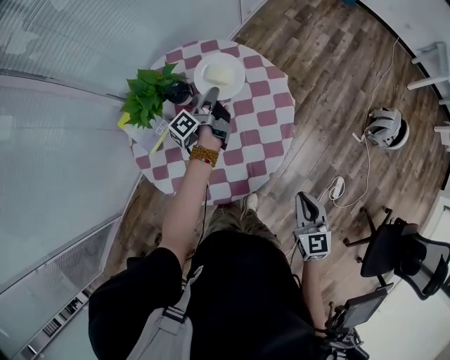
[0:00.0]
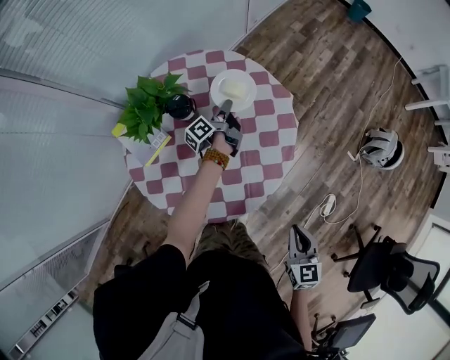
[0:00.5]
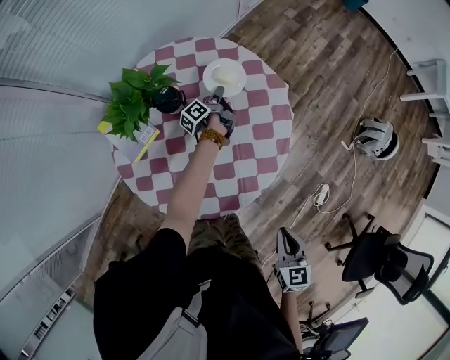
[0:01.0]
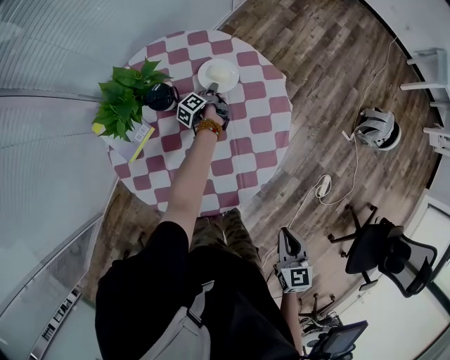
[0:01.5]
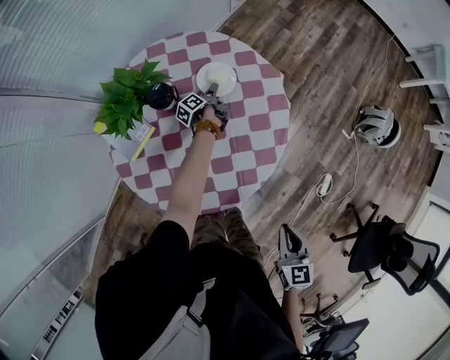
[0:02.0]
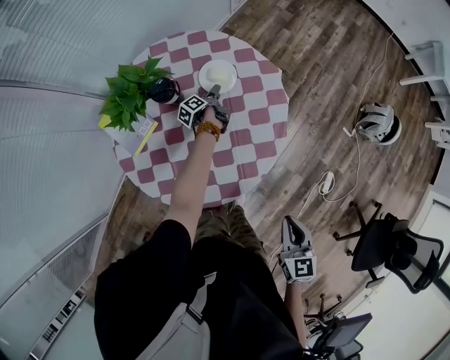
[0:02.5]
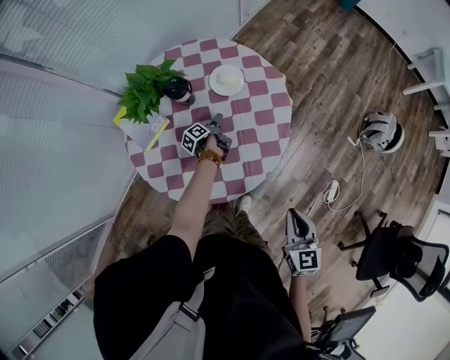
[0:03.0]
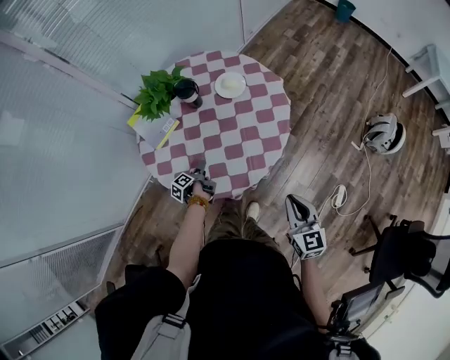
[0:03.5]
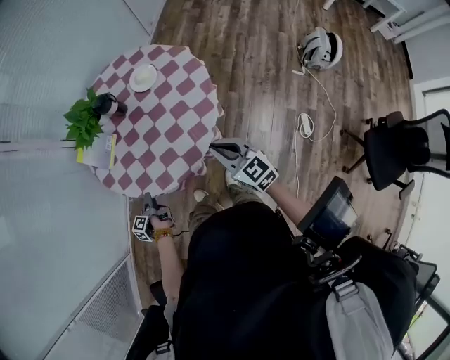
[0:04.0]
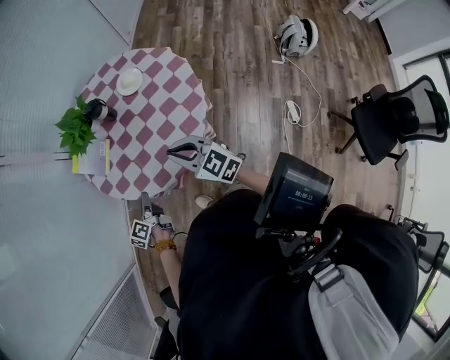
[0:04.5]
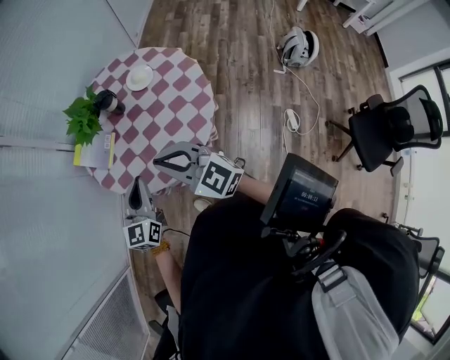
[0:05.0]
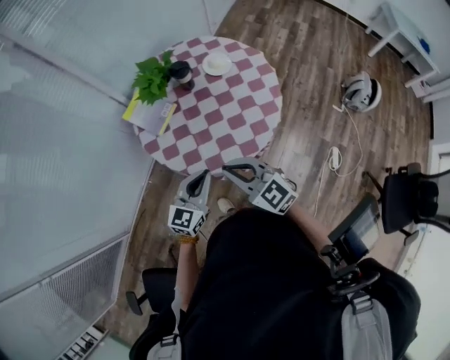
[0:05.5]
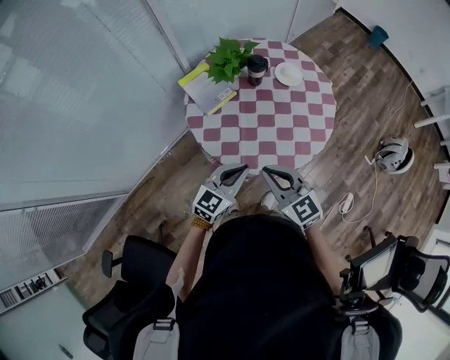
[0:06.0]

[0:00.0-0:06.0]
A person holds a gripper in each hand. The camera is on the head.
0:00.0 to 0:02.0: The right gripper shifts by about 5 cm.
0:02.0 to 0:04.0: The right gripper moves approximately 5 cm, and rotates approximately 30 degrees.
0:04.0 to 0:06.0: The right gripper ends up some 25 cm from where it was, and rotates roughly 20 degrees.

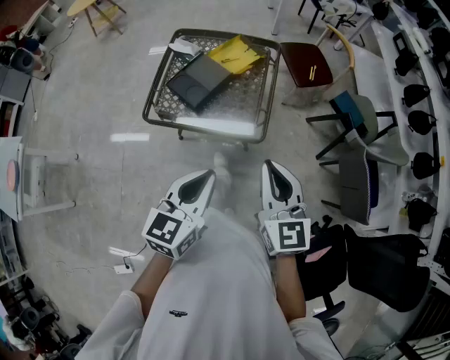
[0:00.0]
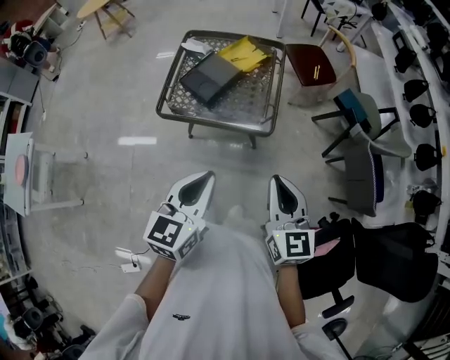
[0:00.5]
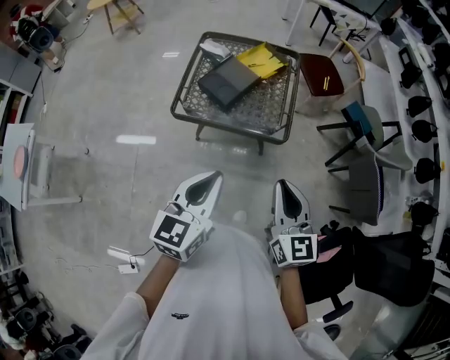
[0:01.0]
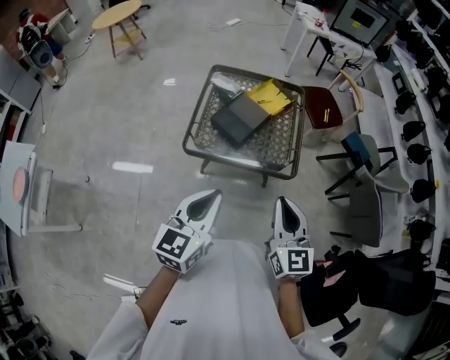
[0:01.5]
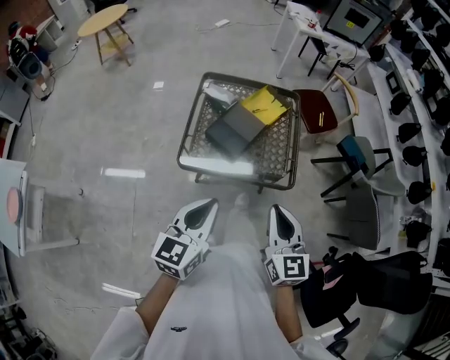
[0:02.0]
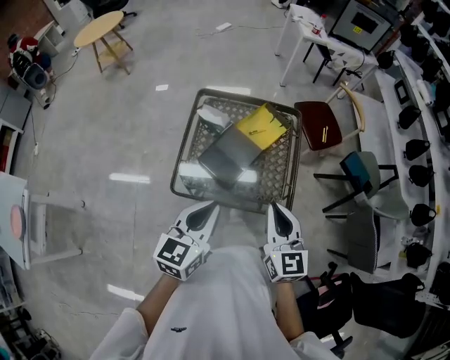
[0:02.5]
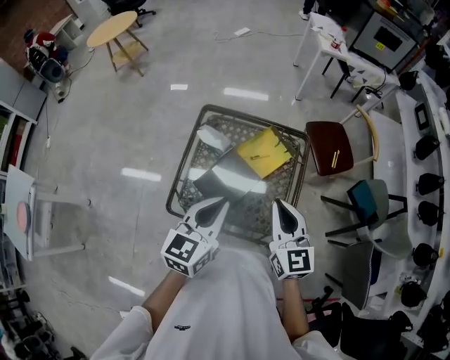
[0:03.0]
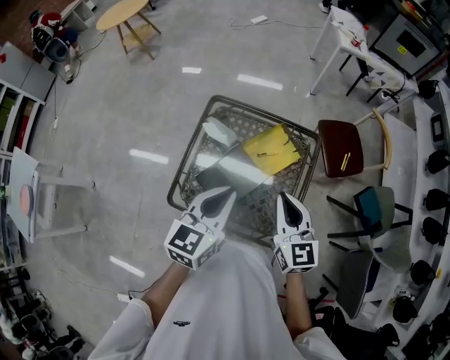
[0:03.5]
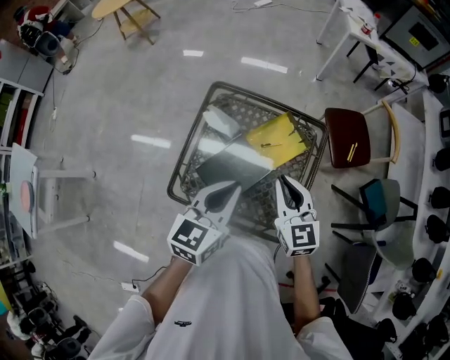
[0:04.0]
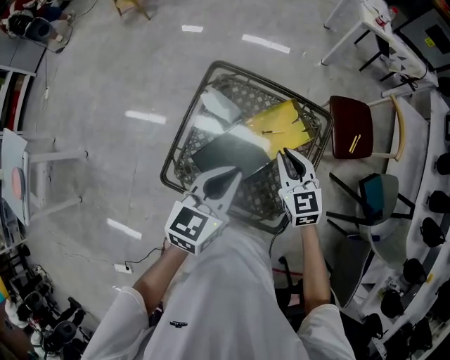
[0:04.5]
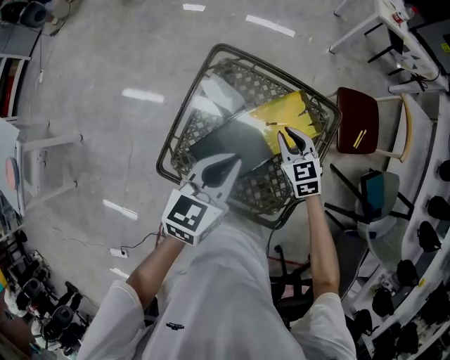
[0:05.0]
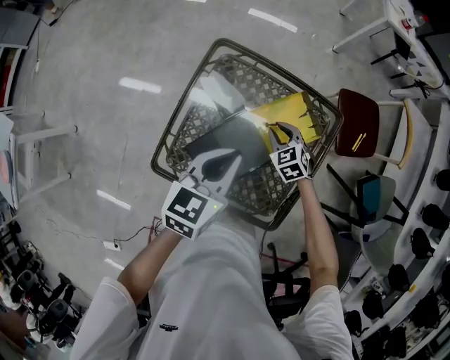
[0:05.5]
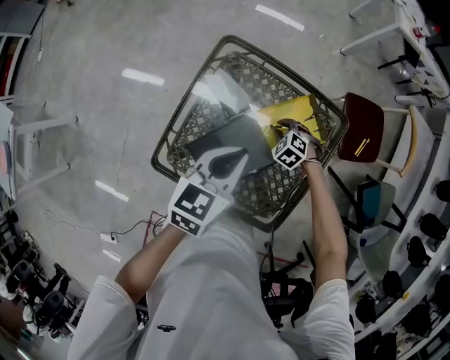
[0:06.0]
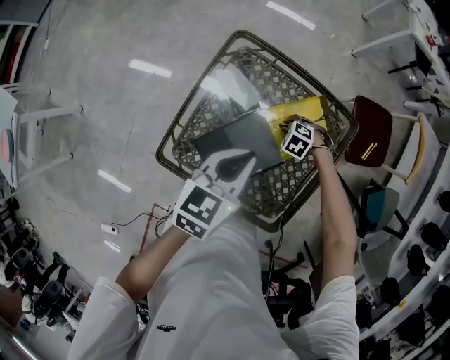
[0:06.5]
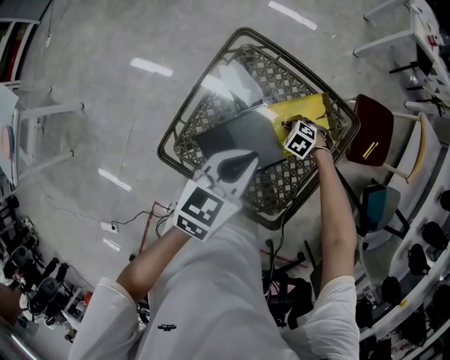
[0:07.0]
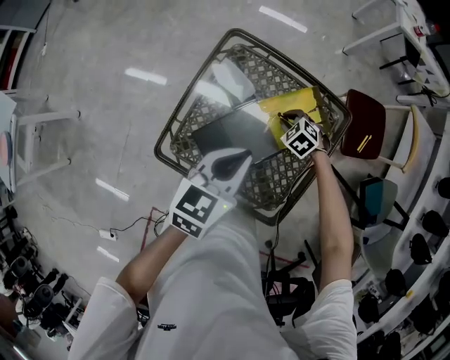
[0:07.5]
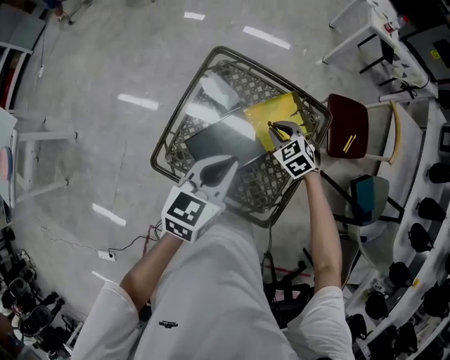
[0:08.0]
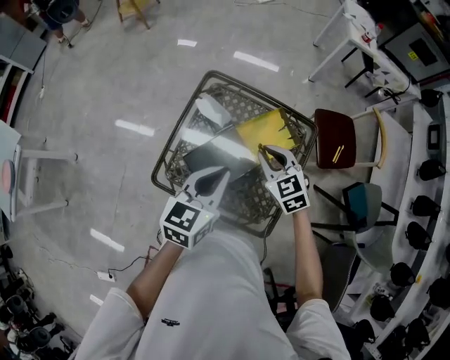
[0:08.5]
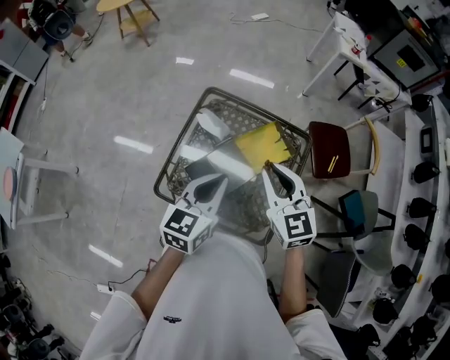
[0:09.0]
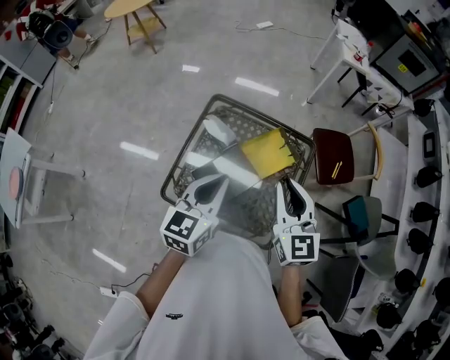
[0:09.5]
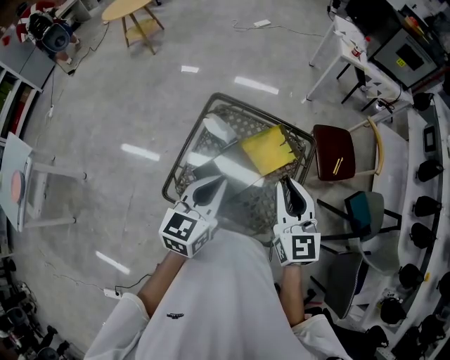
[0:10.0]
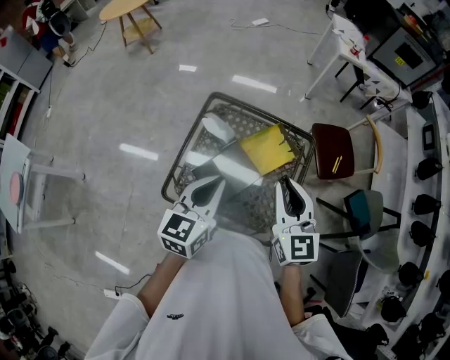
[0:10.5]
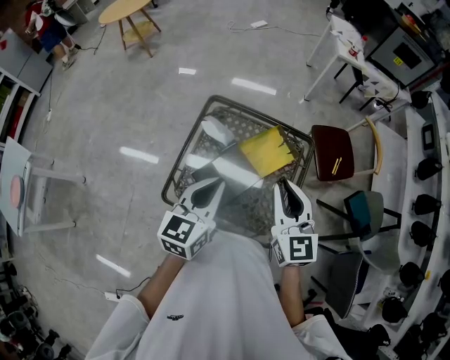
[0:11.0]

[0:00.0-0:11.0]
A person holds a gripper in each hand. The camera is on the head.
0:00.0 to 0:02.0: Both grippers travel together to the left, roughly 20 cm.
0:02.0 to 0:03.5: The grippers both shift forward by some 35 cm.
0:03.5 to 0:05.5: The right gripper is displaced downward and forward by some 35 cm, and points its fingers roughly 40 degrees further downward; the left gripper travels downward and forward by roughly 15 cm.
0:05.5 to 0:07.5: The right gripper is displaced downward by some 5 cm, and turns by about 30 degrees.
0:07.5 to 0:09.0: The right gripper is displaced upward by about 40 cm, and angles its fingers upward, by approximately 50 degrees. Meanwhile the left gripper heads upward and backward, covering approximately 10 cm.
0:09.0 to 0:11.0: The right gripper ends up approximately 5 cm from where it was.

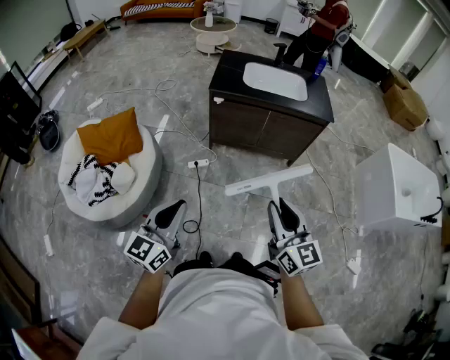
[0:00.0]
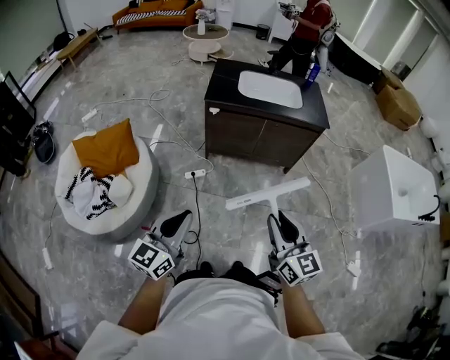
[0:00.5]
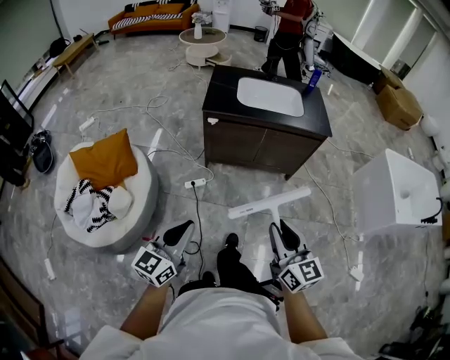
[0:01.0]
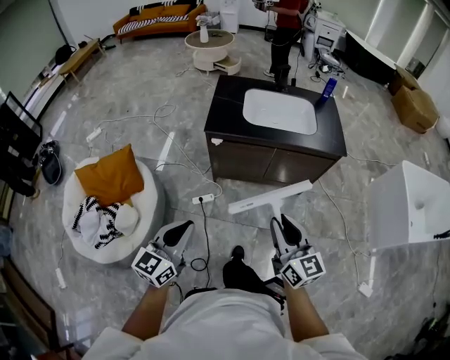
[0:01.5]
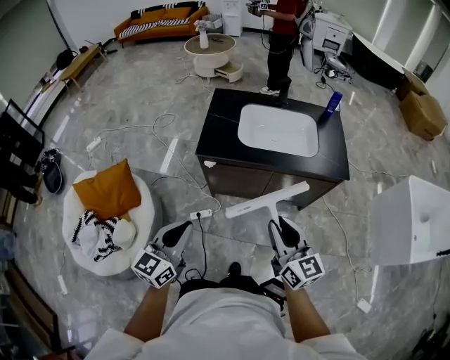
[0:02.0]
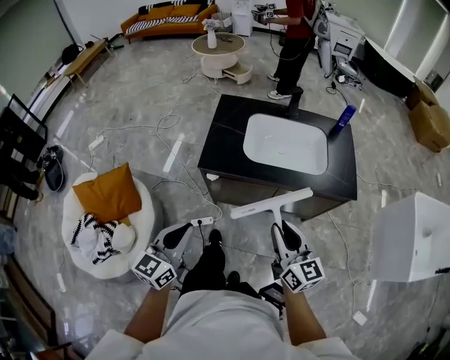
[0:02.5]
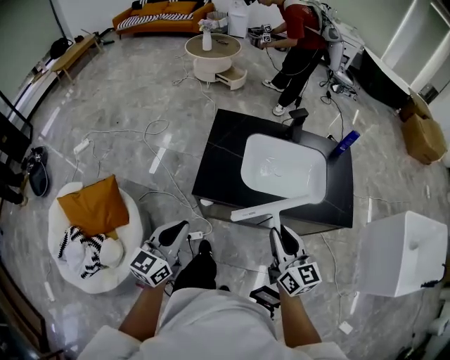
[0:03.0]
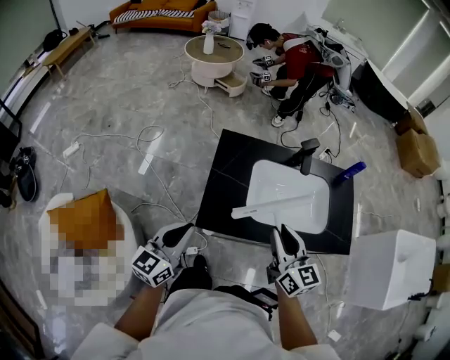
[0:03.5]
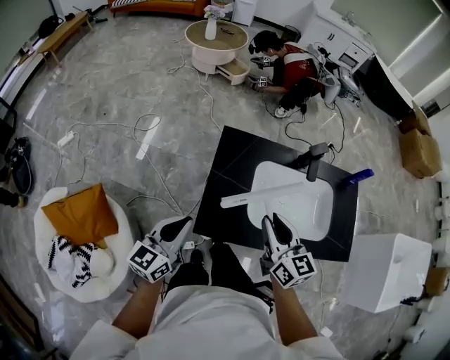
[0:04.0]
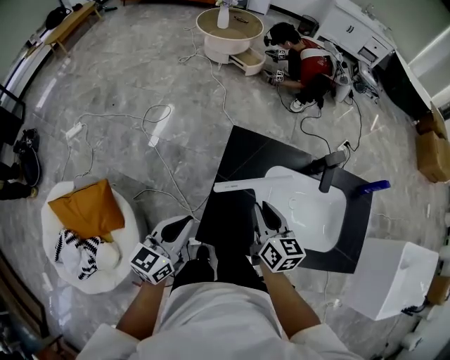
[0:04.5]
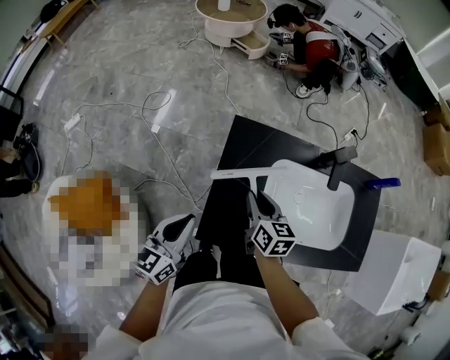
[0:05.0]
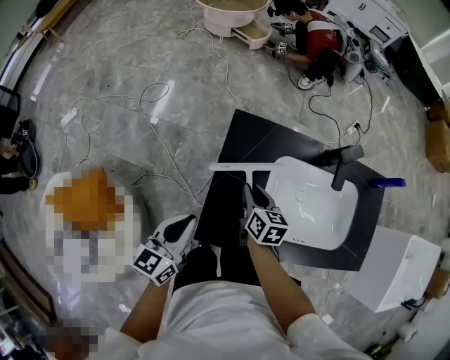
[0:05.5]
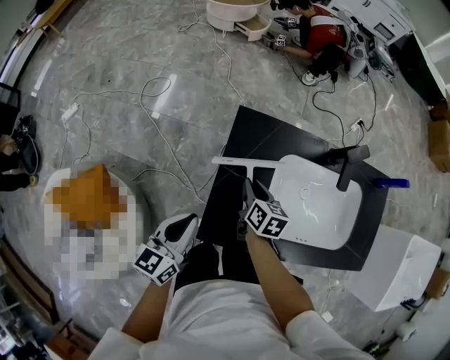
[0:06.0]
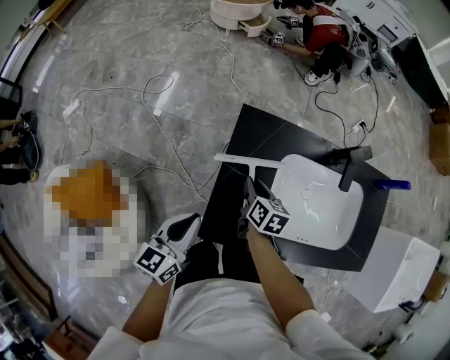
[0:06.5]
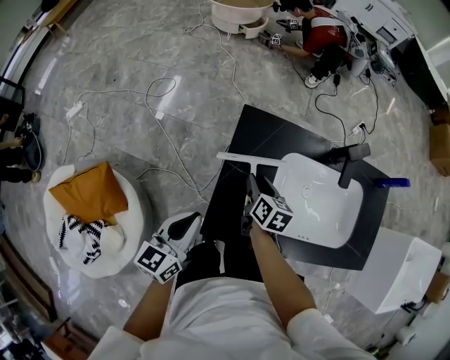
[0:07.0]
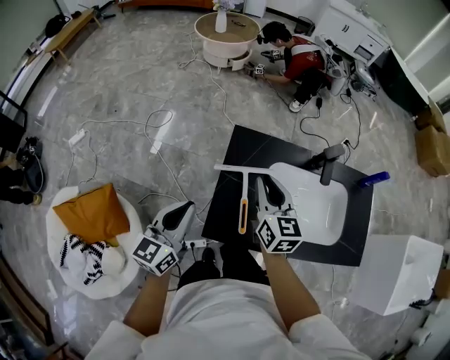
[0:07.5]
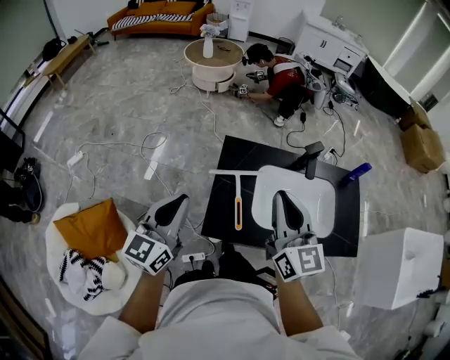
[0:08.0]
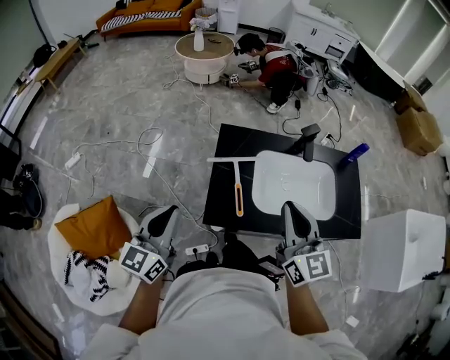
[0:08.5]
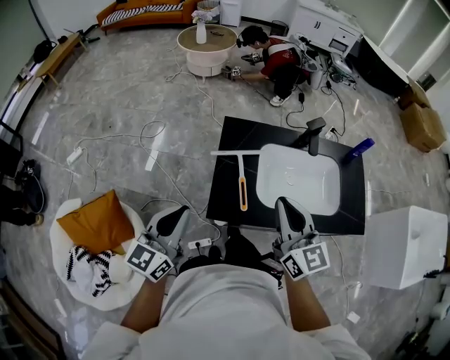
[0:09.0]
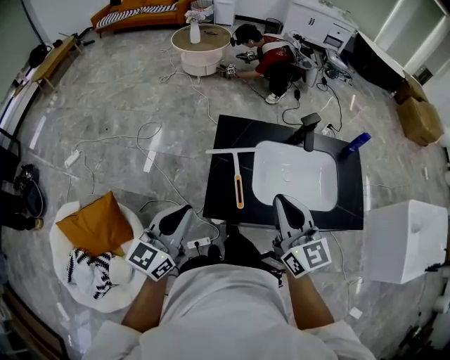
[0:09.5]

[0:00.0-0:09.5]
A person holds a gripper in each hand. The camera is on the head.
0:00.0 to 0:02.0: The grippers both shift forward by about 40 cm.
0:02.0 to 0:04.0: Both grippers are carried forward, roughly 50 cm.
0:04.0 to 0:05.5: The left gripper goes approximately 10 cm downward and forward. Meanwhile the right gripper heads downward and forward, covering approximately 25 cm, and turns by approximately 30 degrees.
0:05.5 to 0:07.5: The left gripper is displaced upward by roughly 10 cm. The right gripper shifts some 20 cm upward, and turns by approximately 30 degrees.
0:07.5 to 0:09.5: The left gripper is displaced backward by some 10 cm, while the right gripper moves backward and upward, roughly 20 cm.
